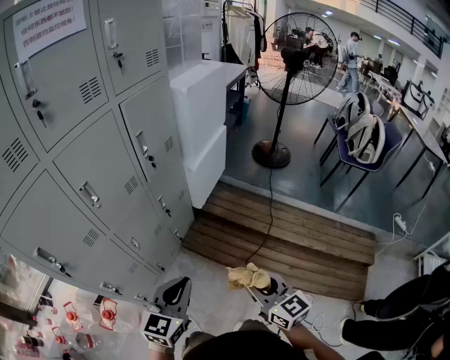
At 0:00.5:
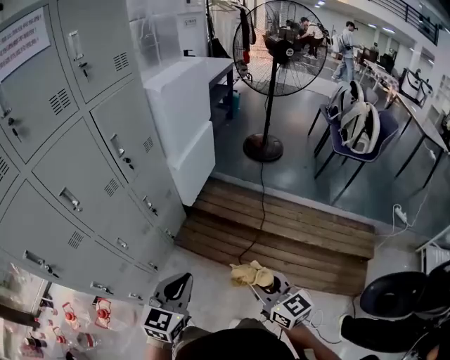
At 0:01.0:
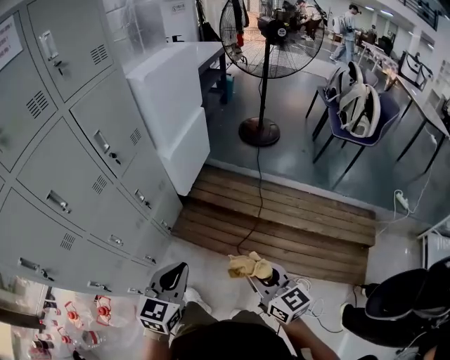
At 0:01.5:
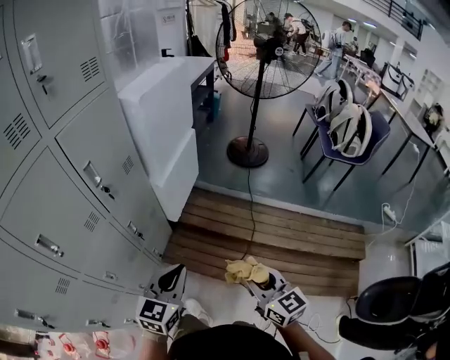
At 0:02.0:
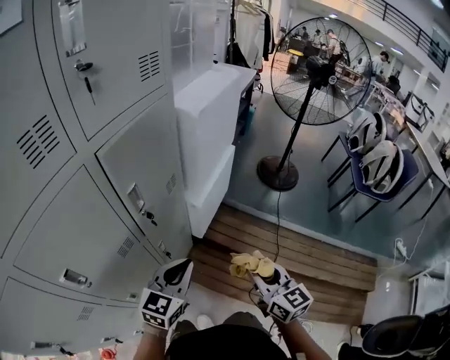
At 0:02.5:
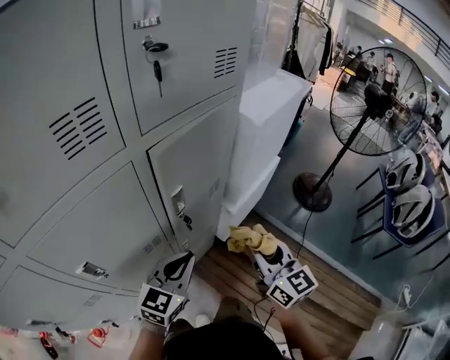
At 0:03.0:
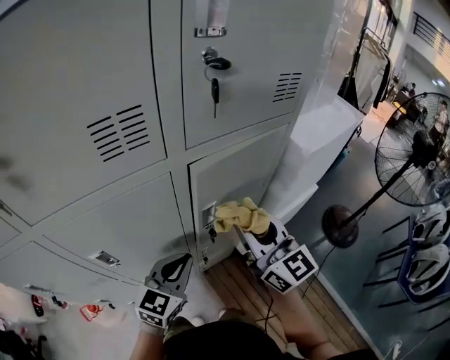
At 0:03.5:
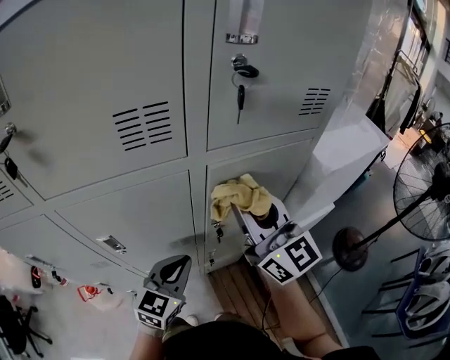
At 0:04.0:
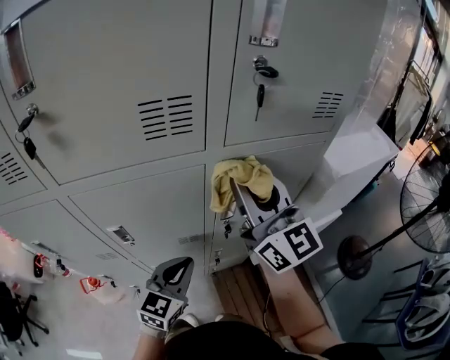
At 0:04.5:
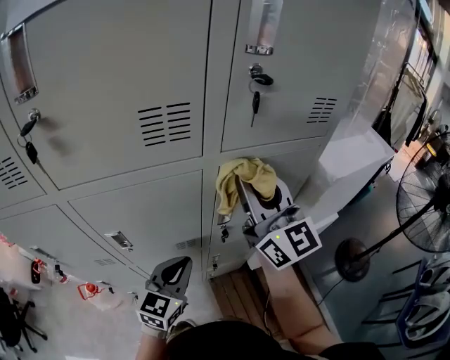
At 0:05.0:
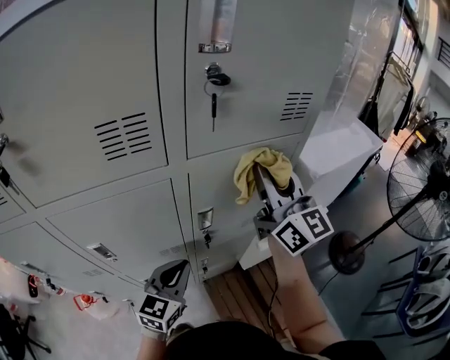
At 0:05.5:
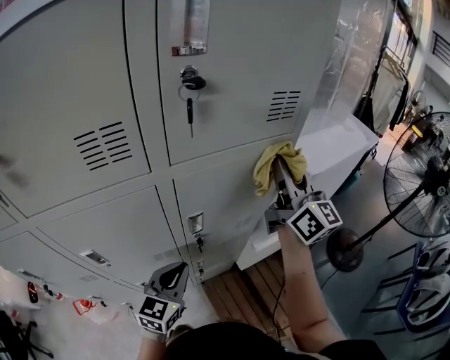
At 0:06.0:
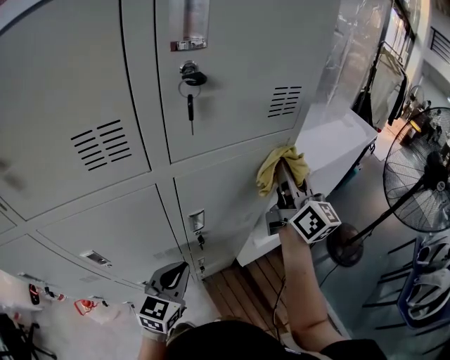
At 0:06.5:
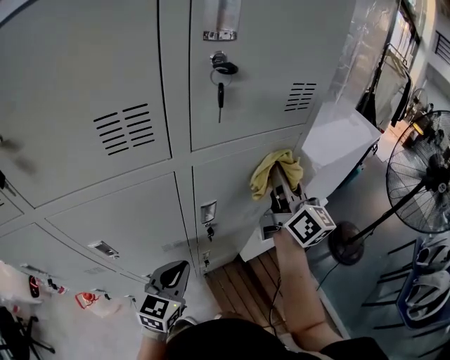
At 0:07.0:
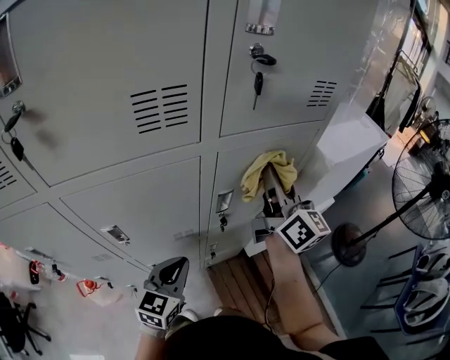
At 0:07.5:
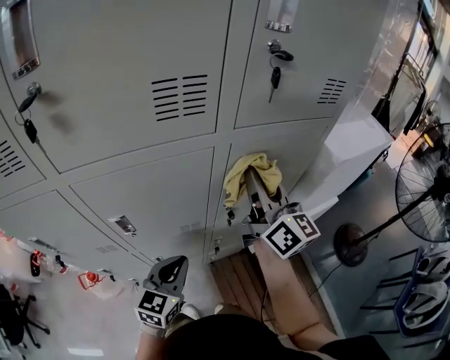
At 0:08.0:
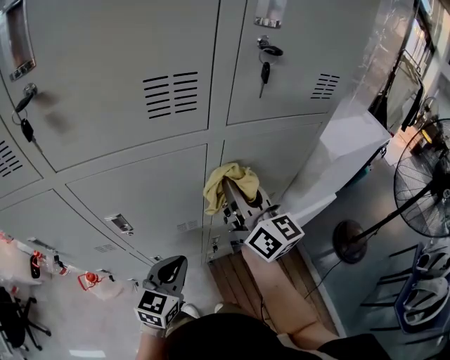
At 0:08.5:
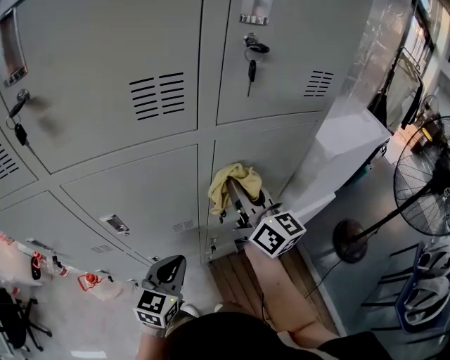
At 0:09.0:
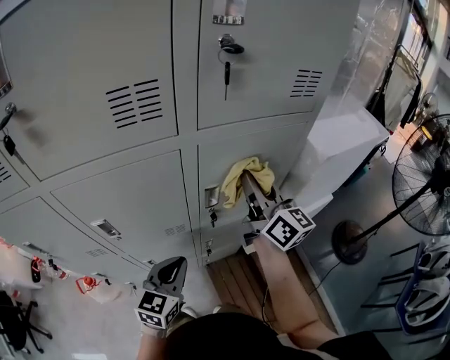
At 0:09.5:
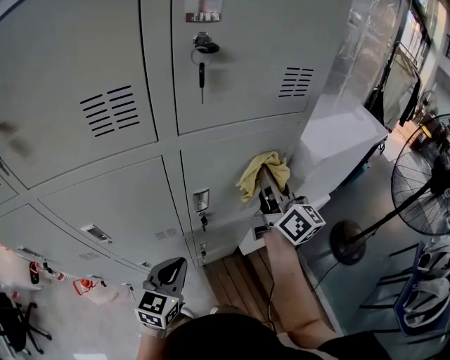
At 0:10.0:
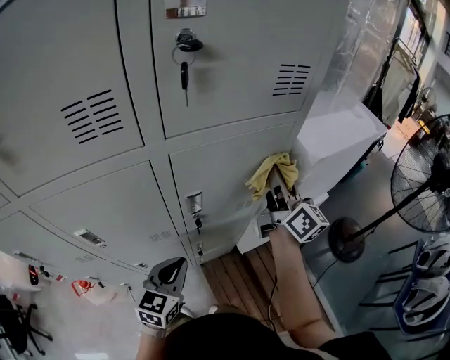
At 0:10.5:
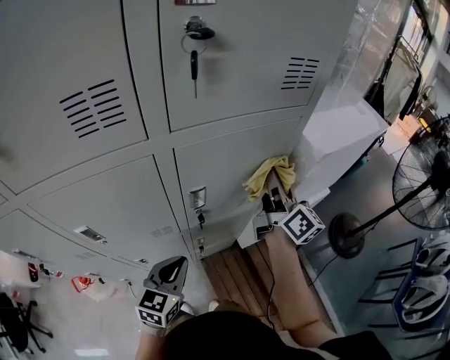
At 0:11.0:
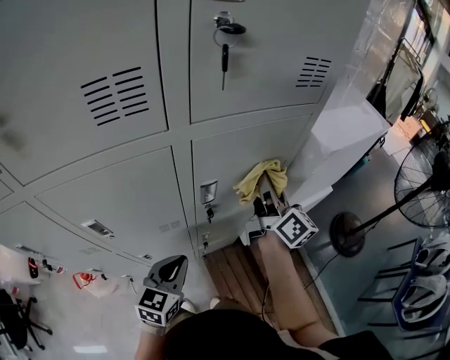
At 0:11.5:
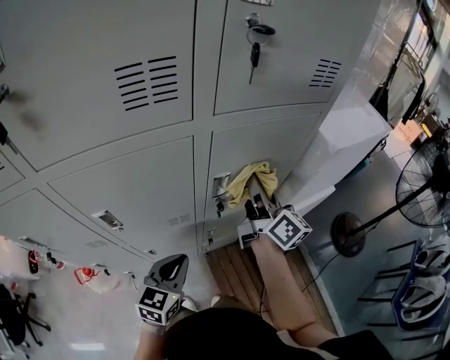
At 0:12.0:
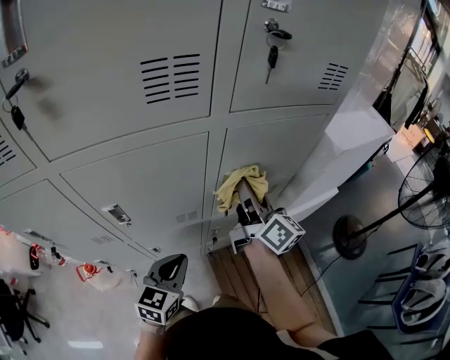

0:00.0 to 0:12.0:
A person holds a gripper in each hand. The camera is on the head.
0:00.0 to 0:02.0: The grippers both shift forward by roughly 35 cm.
0:02.0 to 0:04.0: The left gripper ends up about 15 cm from where it was, and swivels roughly 50 degrees. Meanwhile the right gripper moves about 40 cm, and changes its angle by some 60 degrees.
0:04.0 to 0:06.0: The left gripper shifts some 5 cm to the right, while the right gripper goes approximately 25 cm to the right and forward, and changes its angle by approximately 30 degrees.
0:06.0 to 0:08.0: The right gripper shifts about 25 cm to the left and backward. The left gripper shifts approximately 10 cm to the left and backward.
0:08.0 to 0:10.0: The right gripper goes approximately 20 cm to the right. Meanwhile the left gripper is displaced to the right by roughly 10 cm.
0:10.0 to 0:12.0: The left gripper travels to the left and backward by some 10 cm; the right gripper shifts approximately 20 cm to the left and backward.

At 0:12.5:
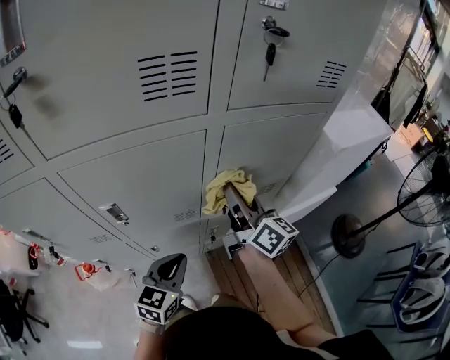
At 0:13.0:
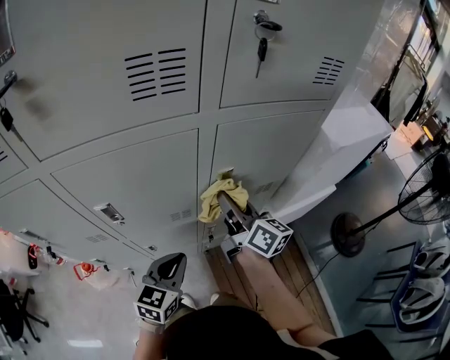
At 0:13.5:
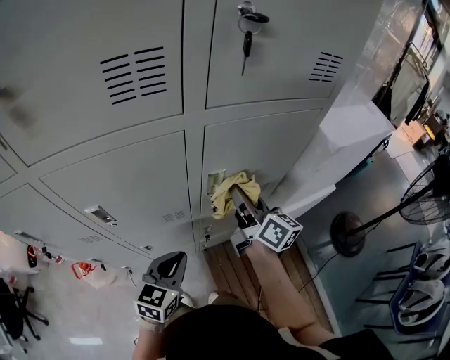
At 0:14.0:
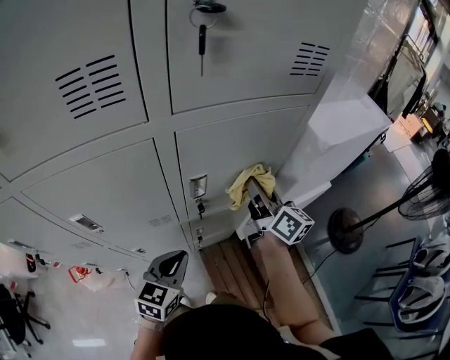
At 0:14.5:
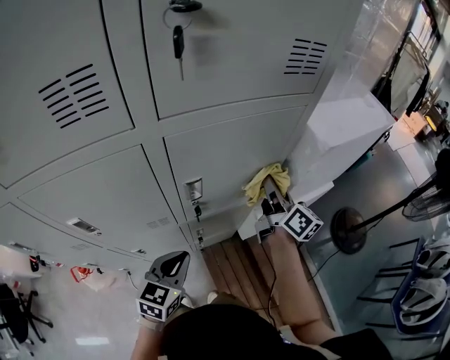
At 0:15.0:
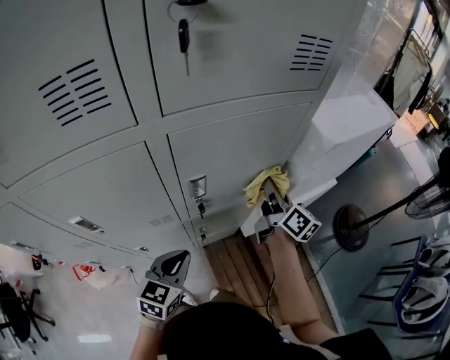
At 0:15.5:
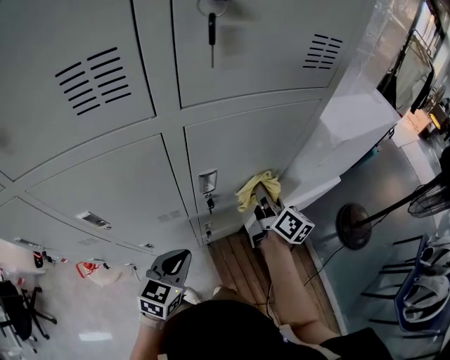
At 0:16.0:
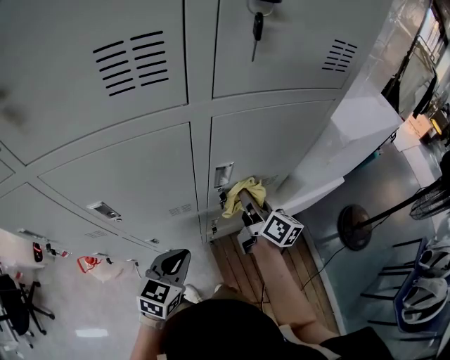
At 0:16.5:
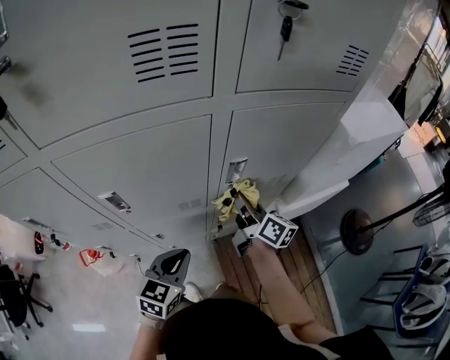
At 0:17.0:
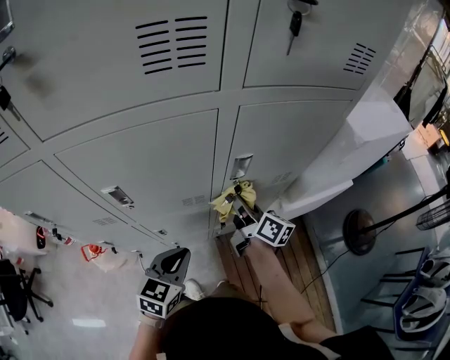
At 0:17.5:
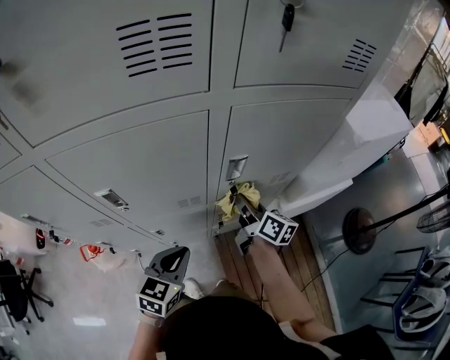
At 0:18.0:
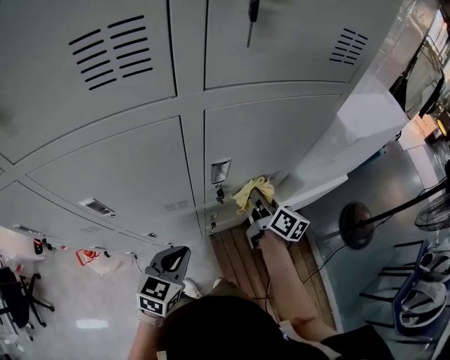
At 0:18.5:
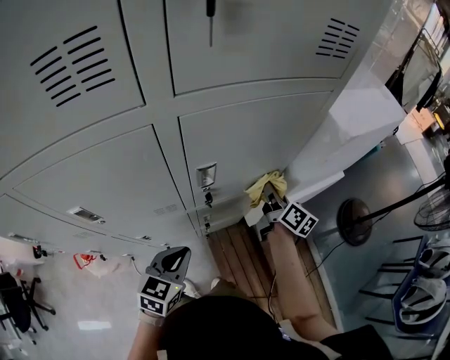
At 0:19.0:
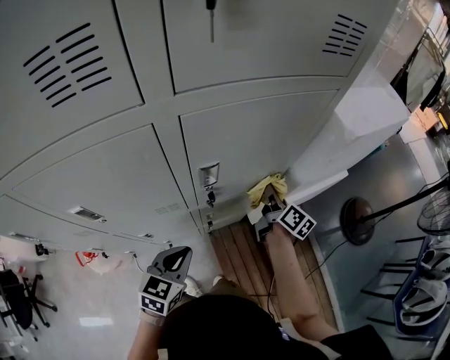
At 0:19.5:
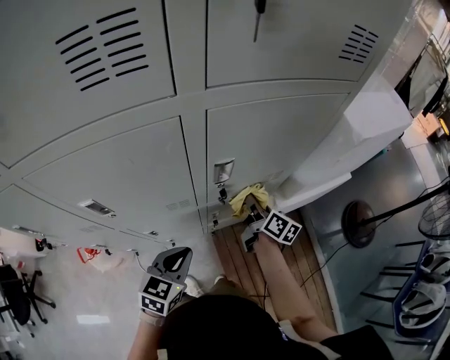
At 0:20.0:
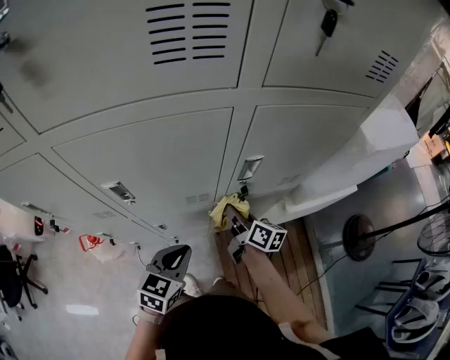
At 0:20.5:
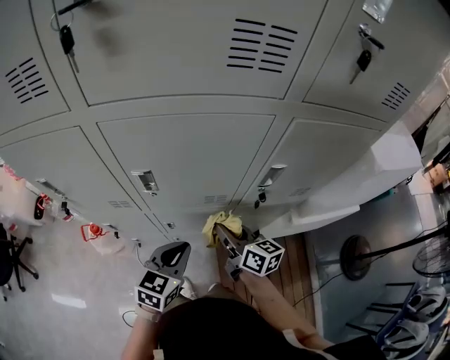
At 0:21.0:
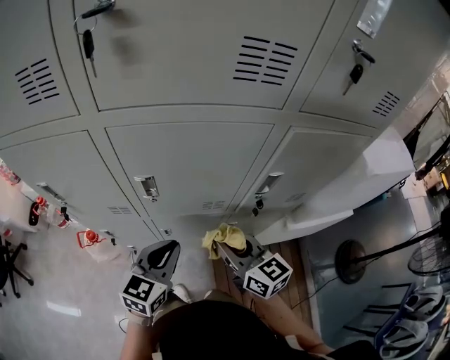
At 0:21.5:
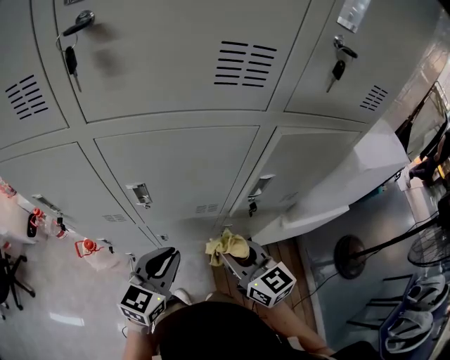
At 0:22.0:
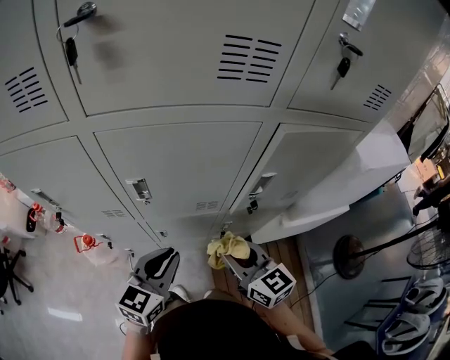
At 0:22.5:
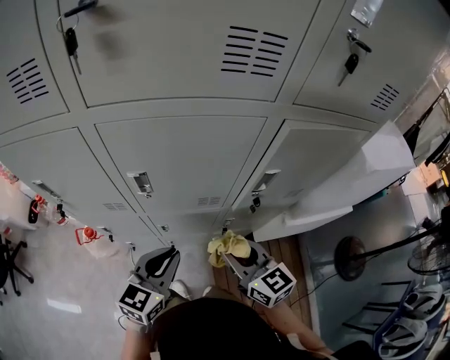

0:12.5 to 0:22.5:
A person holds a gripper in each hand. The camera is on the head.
0:12.5 to 0:14.5: The right gripper moves to the right and forward, about 20 cm; the left gripper heads to the right, covering about 10 cm.
0:14.5 to 0:16.5: The left gripper goes about 10 cm to the left and backward. The right gripper is displaced to the left by approximately 20 cm.
0:16.5 to 0:18.5: The left gripper moves to the right, some 5 cm; the right gripper moves to the right, some 15 cm.
0:18.5 to 0:20.5: The left gripper is displaced to the left by about 10 cm. Meanwhile the right gripper goes about 30 cm to the left and backward, and rotates about 40 degrees.
0:20.5 to 0:22.5: The right gripper goes some 10 cm backward and upward, and swivels some 30 degrees. Meanwhile the left gripper is displaced upward by roughly 5 cm.

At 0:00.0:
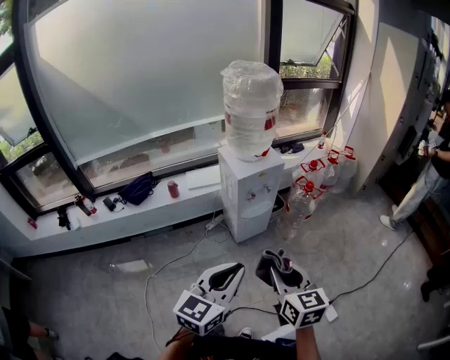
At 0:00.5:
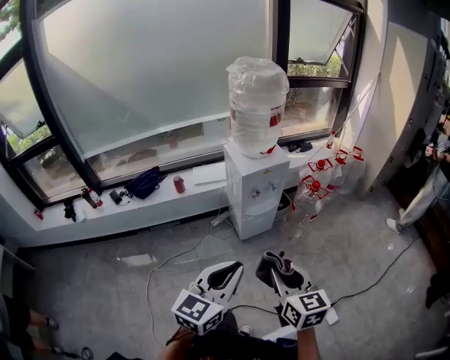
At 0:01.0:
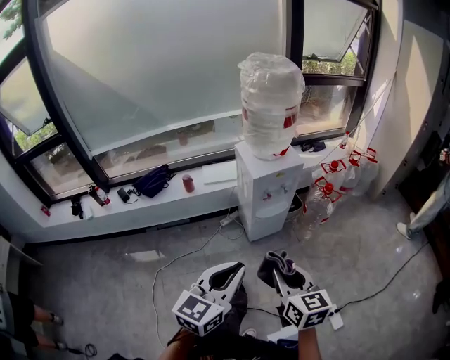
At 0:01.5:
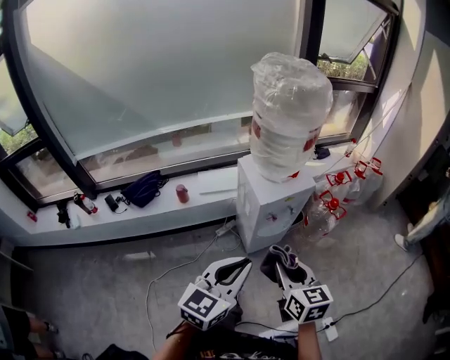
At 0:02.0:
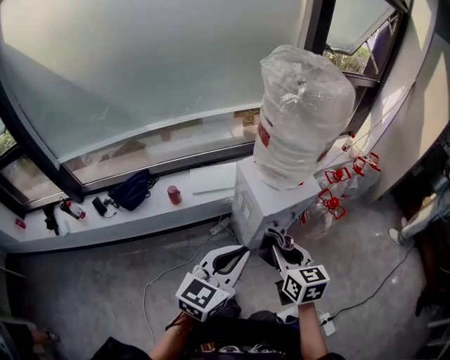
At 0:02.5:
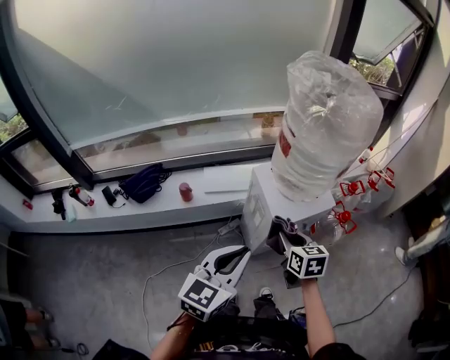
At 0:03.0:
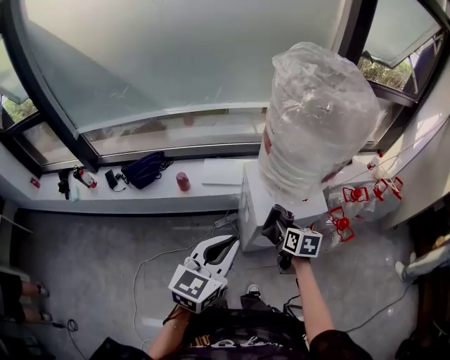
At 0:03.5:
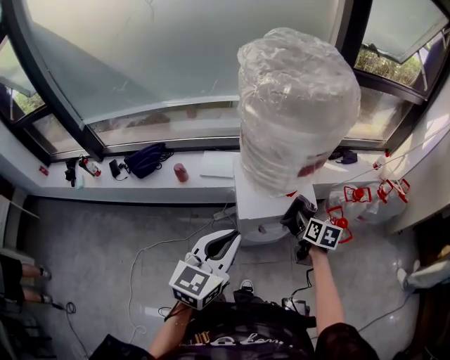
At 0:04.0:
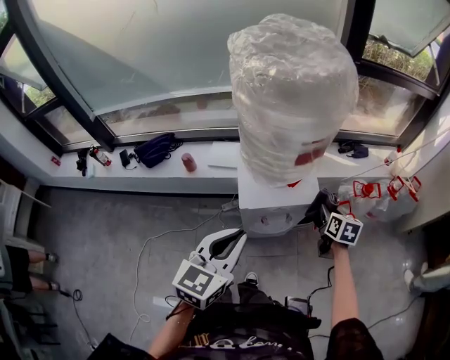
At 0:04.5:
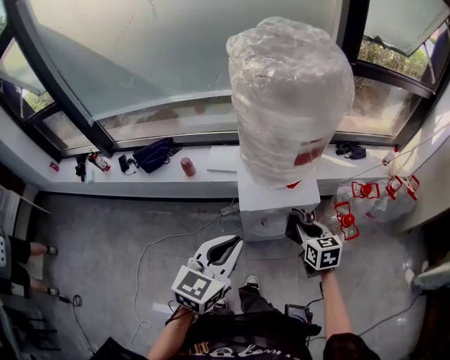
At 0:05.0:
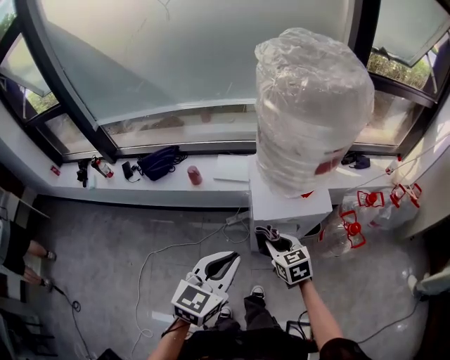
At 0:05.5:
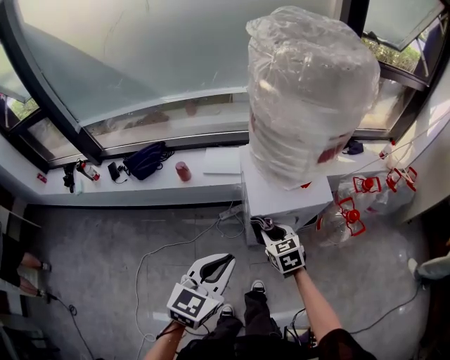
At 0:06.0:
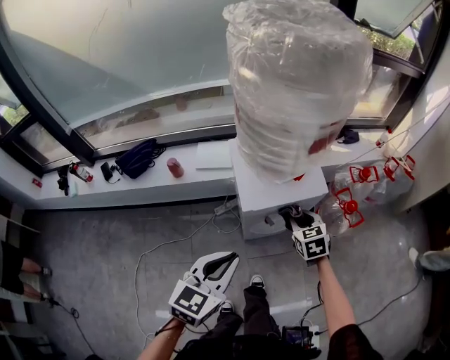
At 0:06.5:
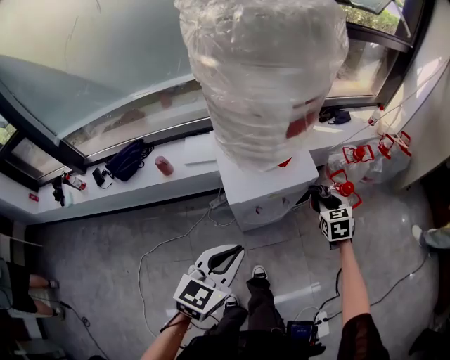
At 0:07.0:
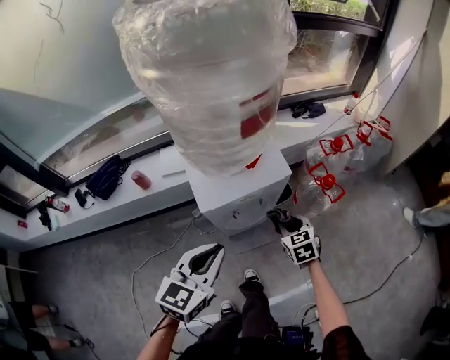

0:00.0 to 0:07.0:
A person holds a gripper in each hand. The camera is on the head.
0:00.0 to 0:02.0: Both grippers move forward, roughly 35 cm.
0:02.0 to 0:03.5: The right gripper shifts some 35 cm forward, to the right and downward, while the left gripper travels to the right and forward by approximately 15 cm, and turns by approximately 20 degrees.
0:03.5 to 0:05.0: The left gripper travels backward by about 5 cm, while the right gripper is displaced to the left and backward by about 20 cm, and turns by approximately 40 degrees.
0:05.0 to 0:07.0: The right gripper changes place by approximately 25 cm, and changes its angle by roughly 20 degrees; the left gripper travels downward by approximately 10 cm.
